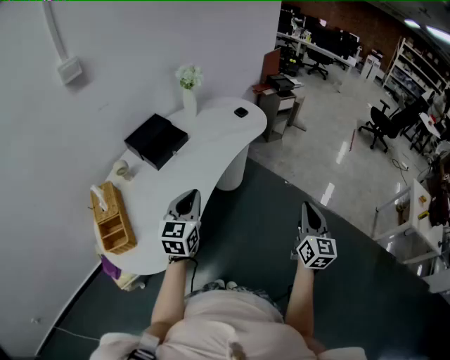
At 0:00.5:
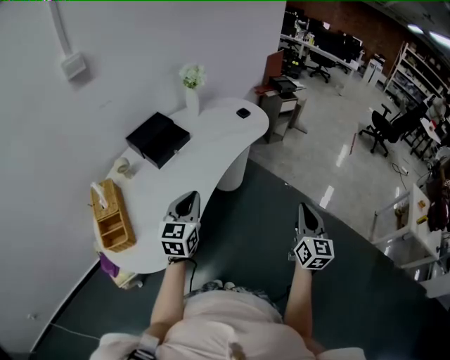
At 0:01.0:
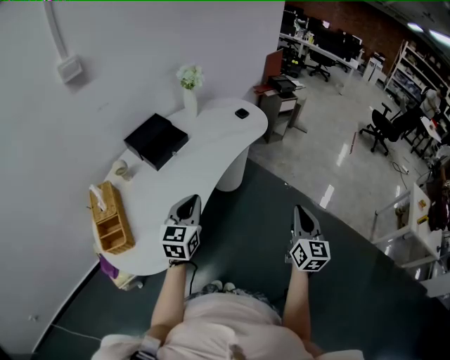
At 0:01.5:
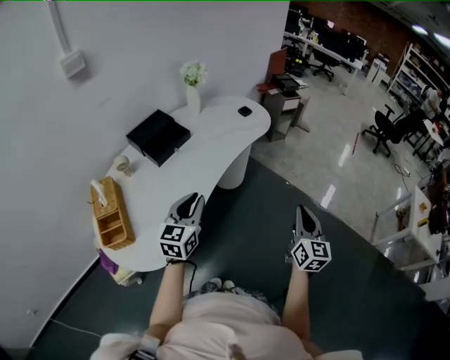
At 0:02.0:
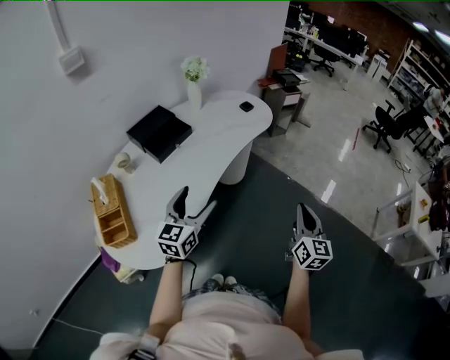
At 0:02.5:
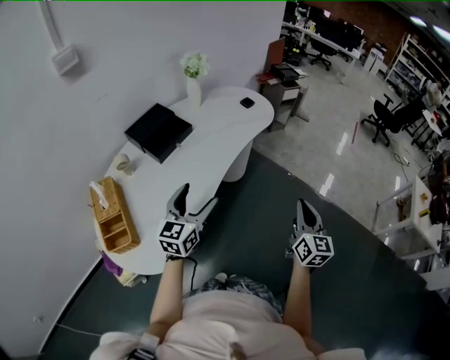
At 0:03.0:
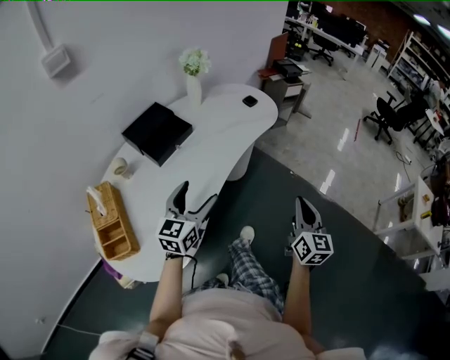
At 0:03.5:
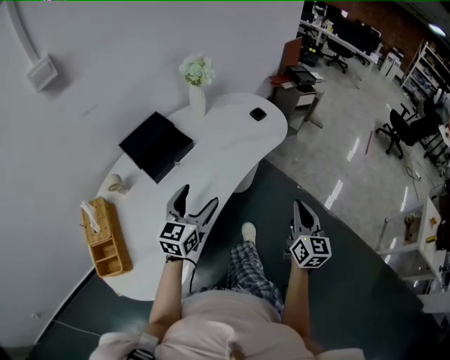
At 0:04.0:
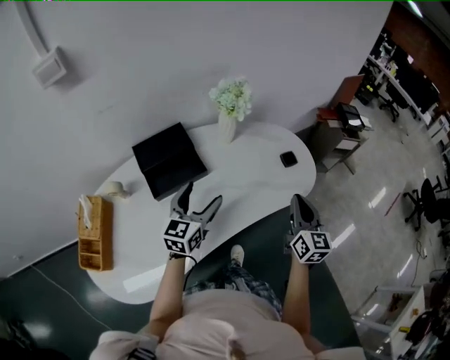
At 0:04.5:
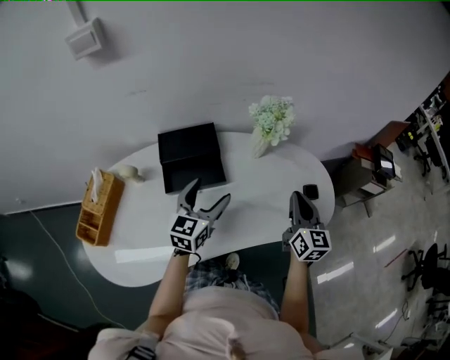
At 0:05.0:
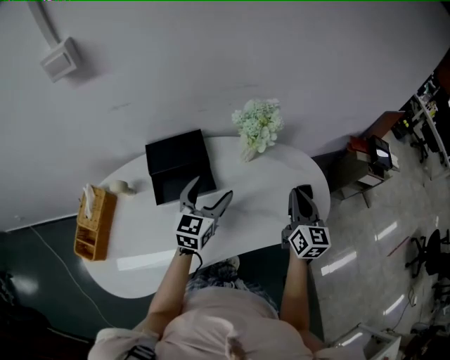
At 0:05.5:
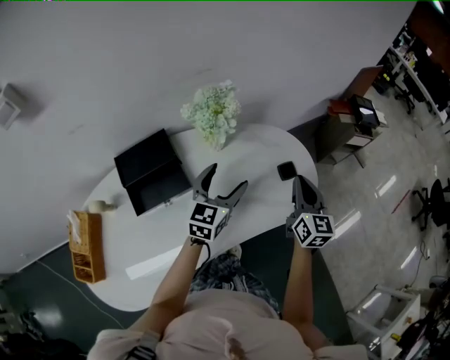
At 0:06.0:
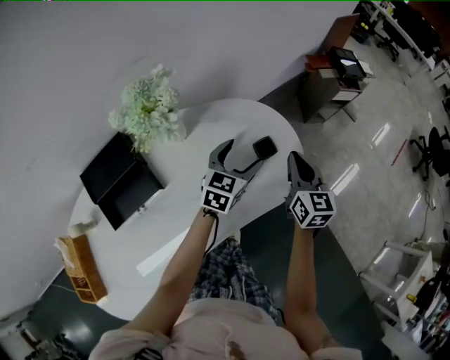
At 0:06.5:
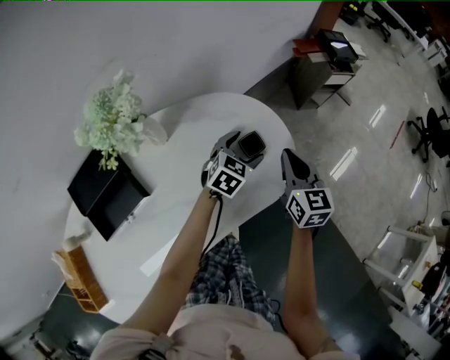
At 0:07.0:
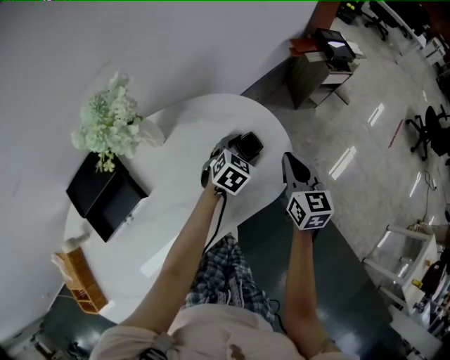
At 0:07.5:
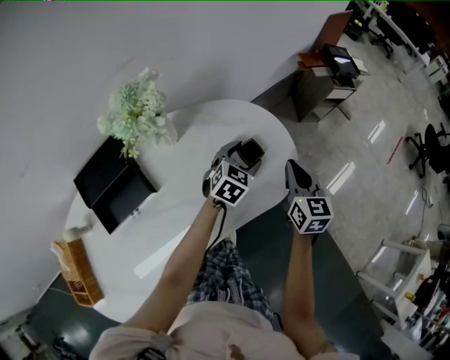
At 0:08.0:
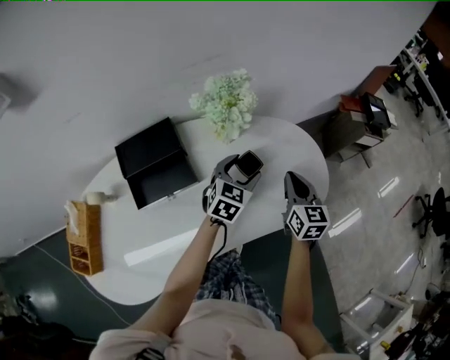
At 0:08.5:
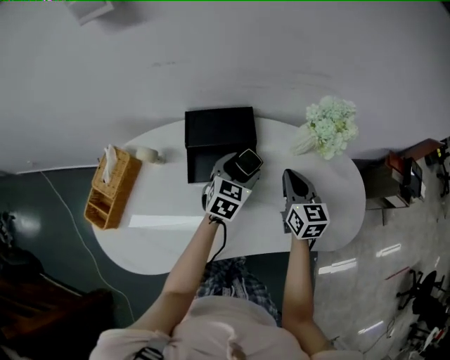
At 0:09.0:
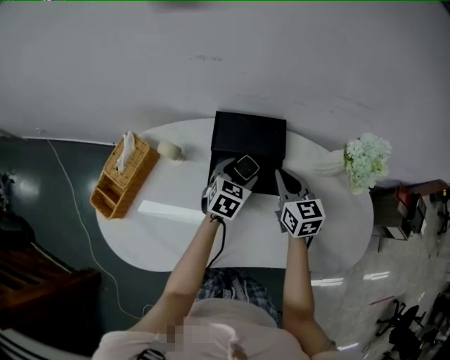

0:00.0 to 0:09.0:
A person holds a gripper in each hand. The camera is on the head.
0:00.0 to 0:02.0: The left gripper opens.
0:02.0 to 0:04.5: The right gripper shifts by about 60 cm, and changes its angle by some 50 degrees; the left gripper changes place by roughly 40 cm, and rotates some 40 degrees.
0:04.5 to 0:07.0: The right gripper shifts by roughly 25 cm, and swivels approximately 30 degrees. Meanwhile the left gripper moves approximately 50 cm, and points its fingers approximately 30 degrees further downward.
0:07.0 to 0:09.0: The pair of grippers is taken approximately 50 cm. The left gripper turns by approximately 60 degrees, while the right gripper changes its angle by about 50 degrees.

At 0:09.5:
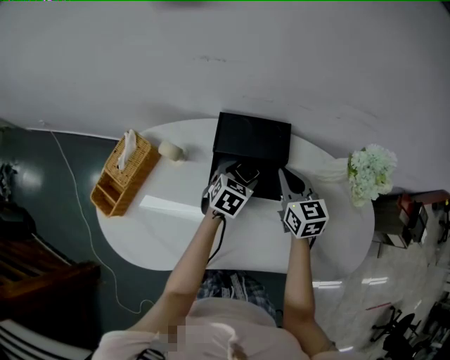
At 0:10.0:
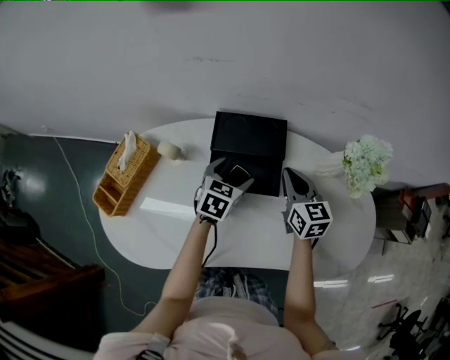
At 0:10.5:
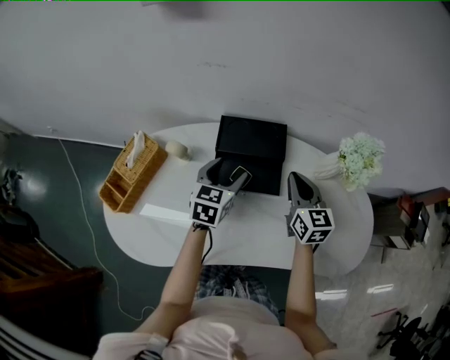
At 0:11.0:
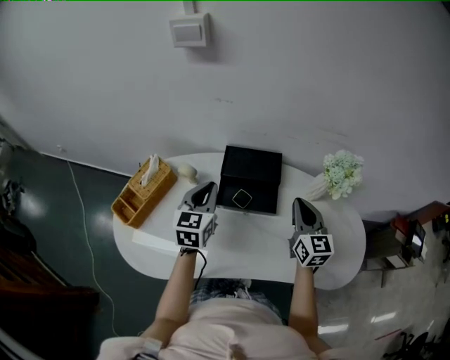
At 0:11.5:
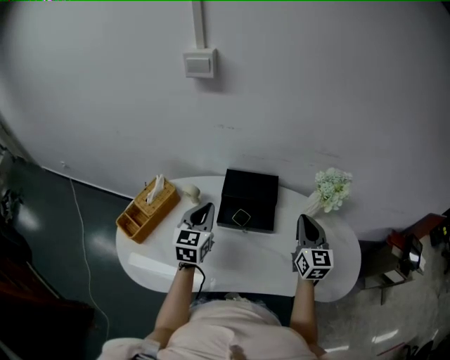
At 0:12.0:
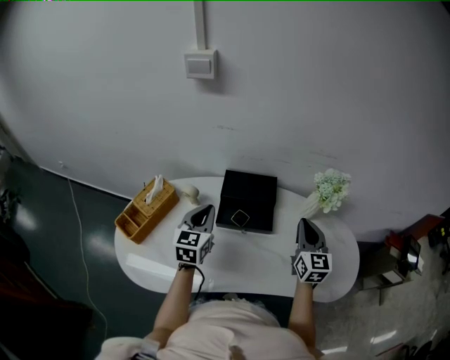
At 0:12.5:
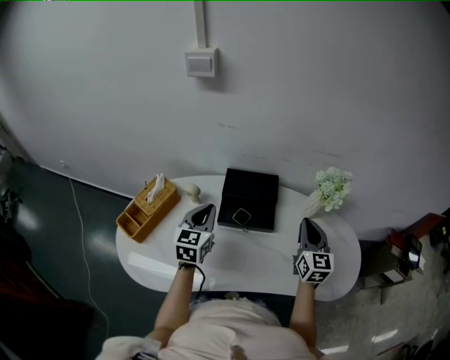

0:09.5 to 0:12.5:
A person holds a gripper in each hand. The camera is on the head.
0:09.5 to 0:11.0: The left gripper travels upward and to the left by approximately 25 cm, turns by about 40 degrees, and closes up; the right gripper goes about 15 cm upward, backward and to the right.
0:11.0 to 0:12.5: The right gripper moves approximately 5 cm.

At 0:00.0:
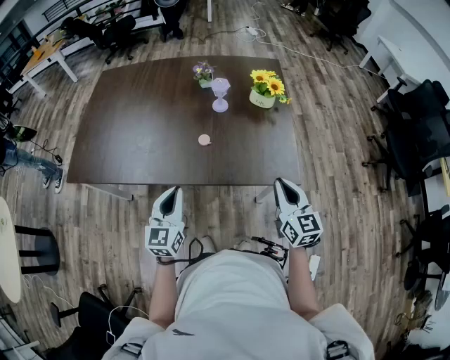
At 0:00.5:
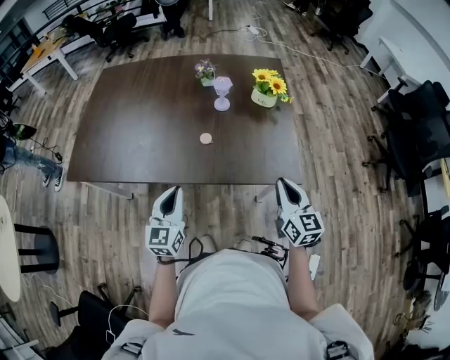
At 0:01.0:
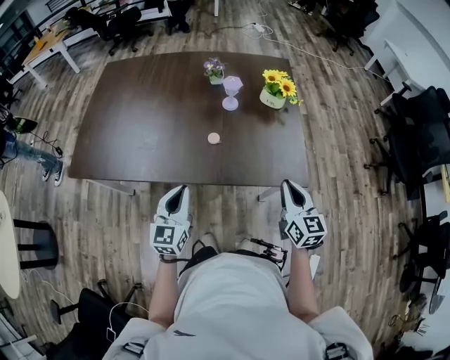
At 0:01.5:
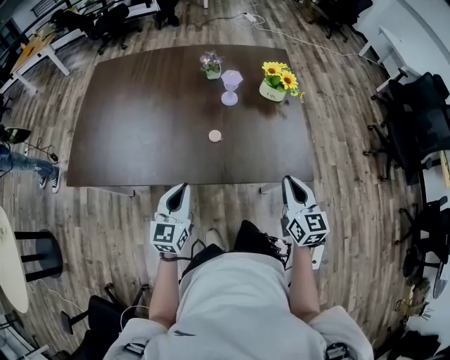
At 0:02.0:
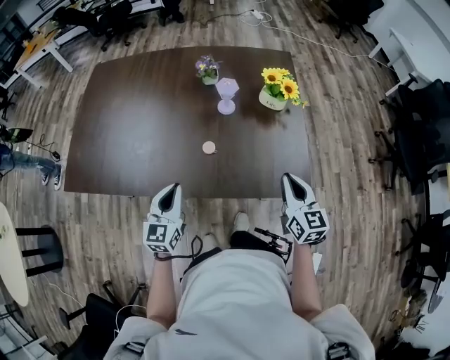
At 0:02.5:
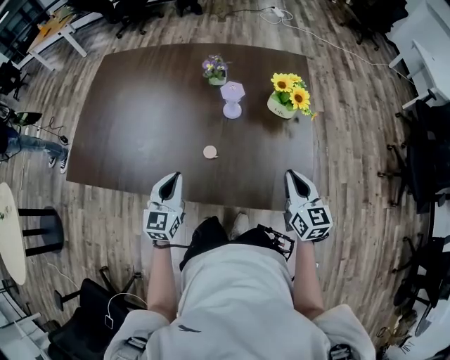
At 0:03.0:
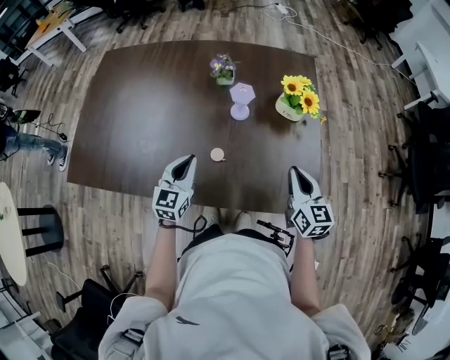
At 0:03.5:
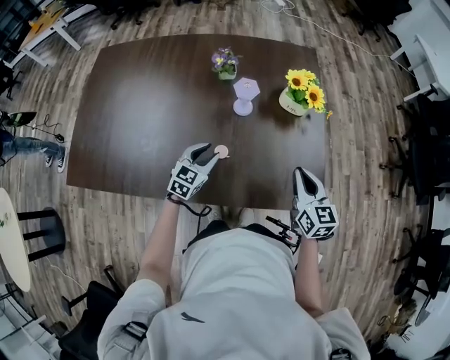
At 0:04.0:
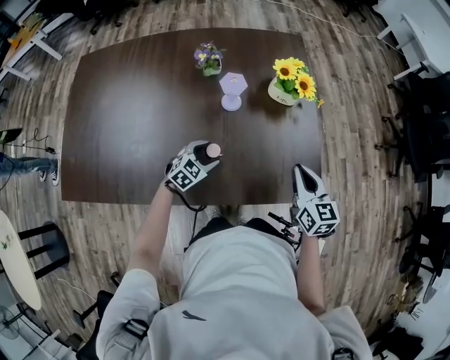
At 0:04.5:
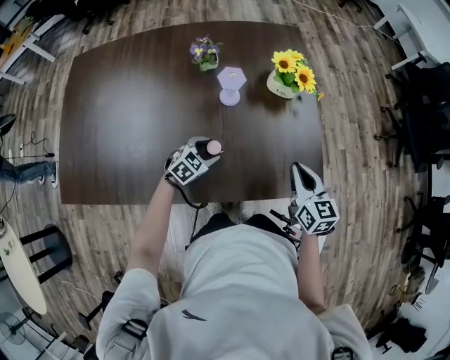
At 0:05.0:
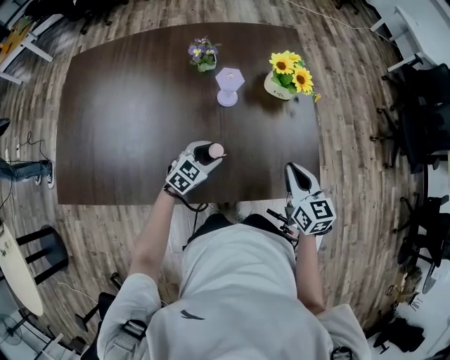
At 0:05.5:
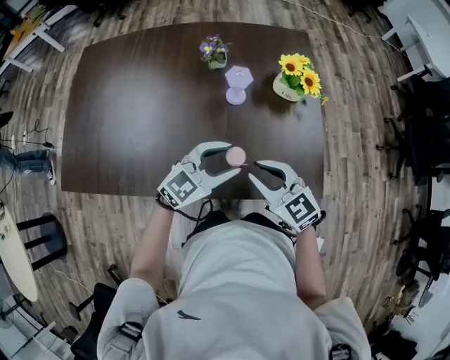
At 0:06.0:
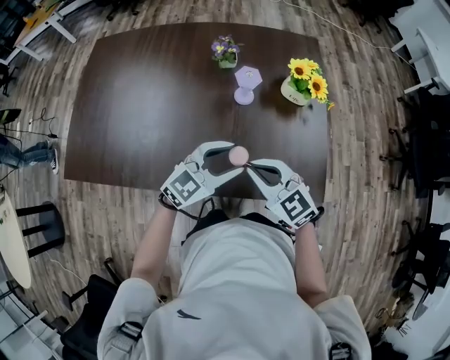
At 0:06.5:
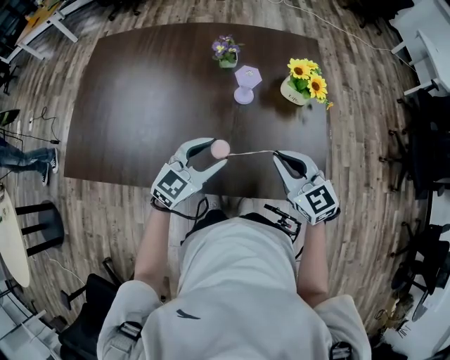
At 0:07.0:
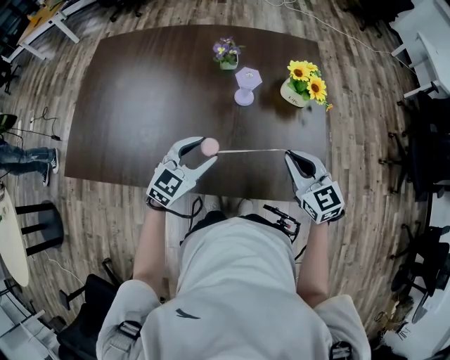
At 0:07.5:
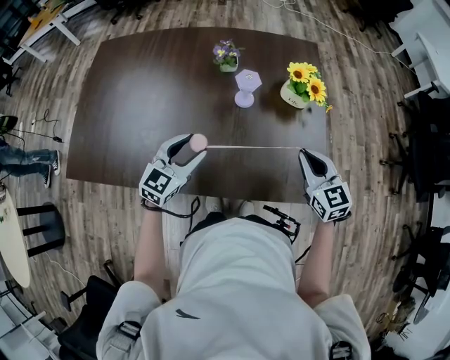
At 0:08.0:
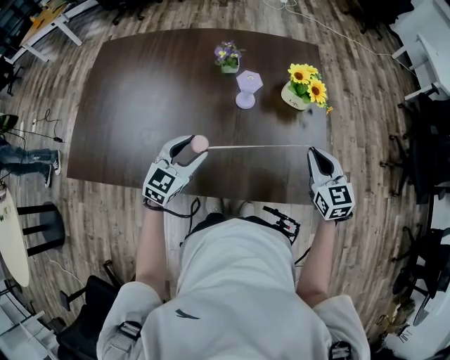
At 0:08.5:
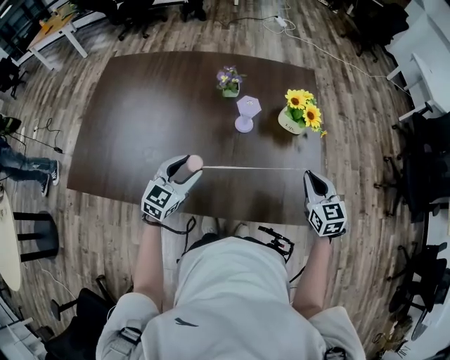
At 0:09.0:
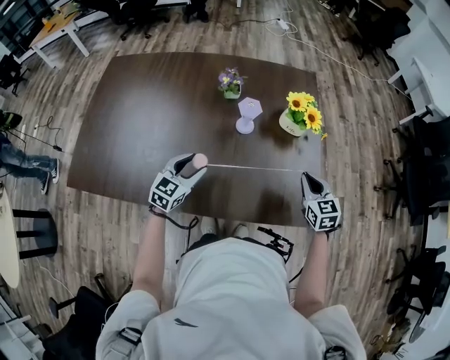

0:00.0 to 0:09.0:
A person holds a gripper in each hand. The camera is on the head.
0:00.0 to 0:02.0: Both grippers travel together forward, some 10 cm.
0:02.0 to 0:04.5: The right gripper shifts by some 10 cm. The left gripper moves downward, roughly 20 cm, angles its fingers downward, by some 30 degrees, and opens up.
0:04.5 to 0:07.0: The right gripper shifts about 10 cm to the left and upward, and changes its angle by approximately 30 degrees. The left gripper heads upward, covering some 20 cm, and changes its angle by about 30 degrees.
0:07.0 to 0:09.0: The right gripper is displaced to the right and downward by roughly 10 cm. Meanwhile the left gripper travels to the left by some 5 cm.

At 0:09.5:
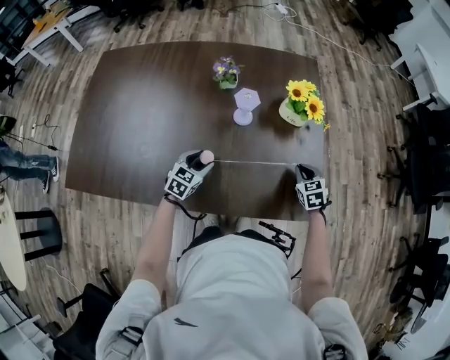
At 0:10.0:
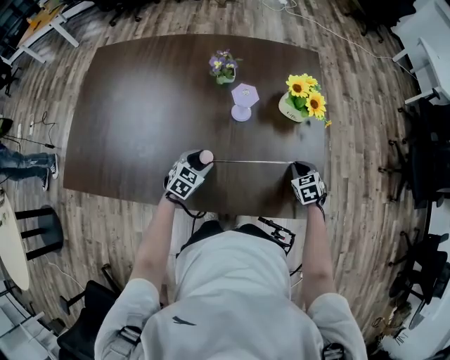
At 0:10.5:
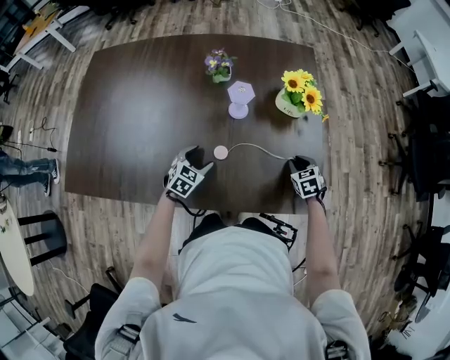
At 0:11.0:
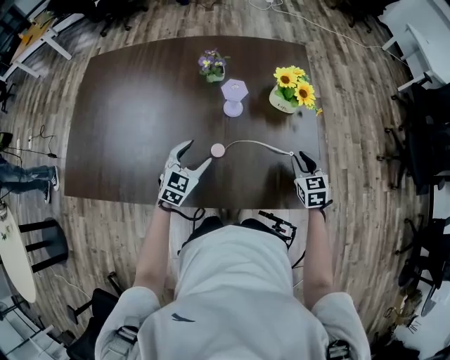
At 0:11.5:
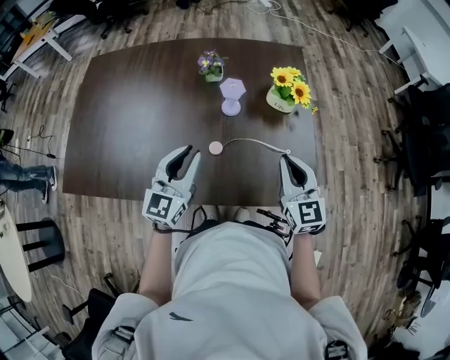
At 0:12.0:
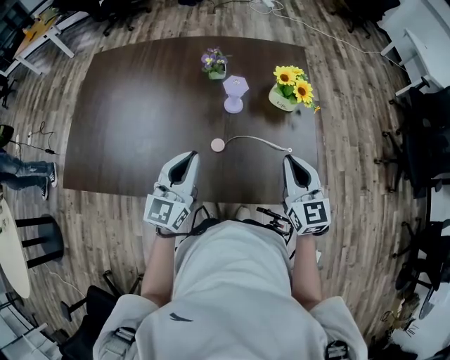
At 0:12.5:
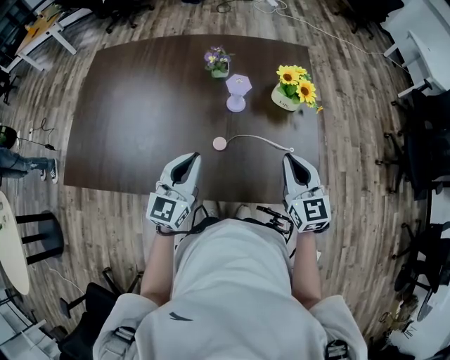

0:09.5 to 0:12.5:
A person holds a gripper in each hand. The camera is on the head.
0:09.5 to 0:11.0: The grippers both shift upward by about 5 cm. The right gripper opens.
0:11.0 to 0:12.5: The right gripper goes some 20 cm upward and to the left, turns by approximately 30 degrees, and closes. Meanwhile the left gripper goes about 15 cm upward and backward, turns by about 30 degrees, and closes.

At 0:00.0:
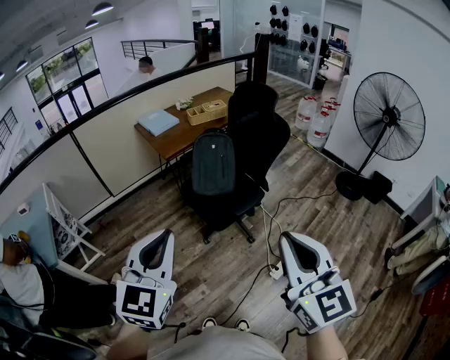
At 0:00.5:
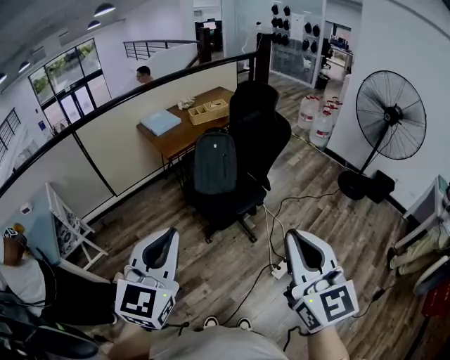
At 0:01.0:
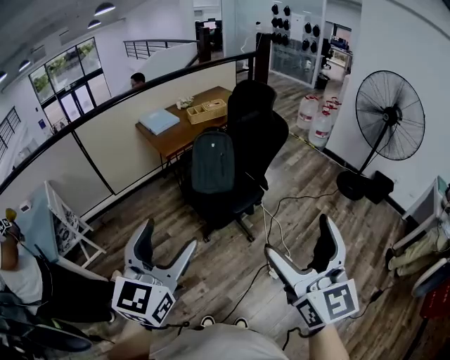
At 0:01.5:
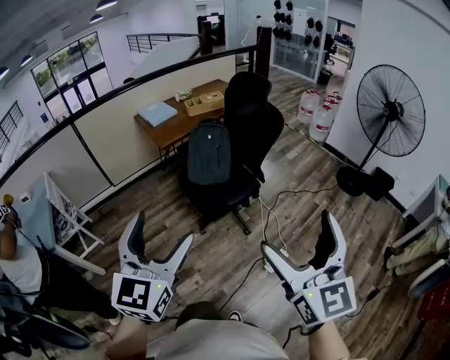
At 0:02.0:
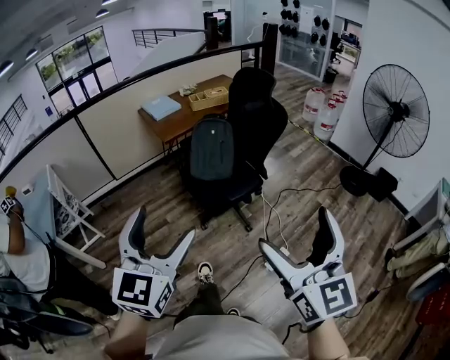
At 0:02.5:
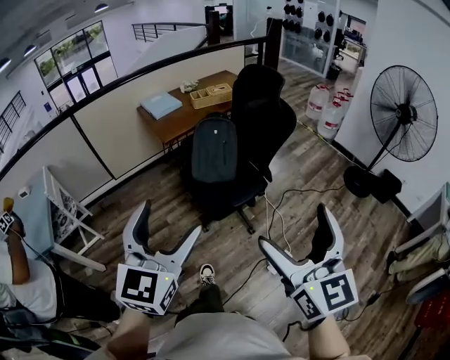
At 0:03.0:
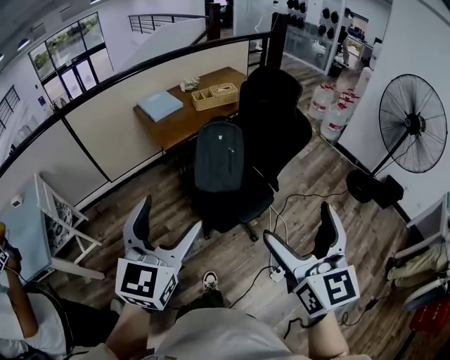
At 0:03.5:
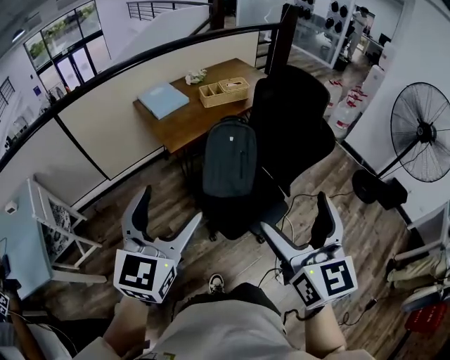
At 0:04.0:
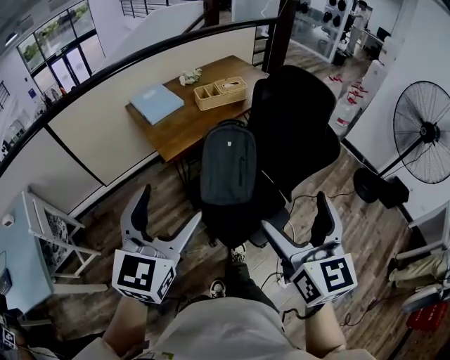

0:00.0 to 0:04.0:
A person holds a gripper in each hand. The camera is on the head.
0:00.0 to 0:02.0: Both grippers travel together to the right, roughly 10 cm. The right gripper opens. Meanwhile the left gripper opens.
0:02.0 to 0:04.0: Both grippers are carried forward, some 50 cm.
